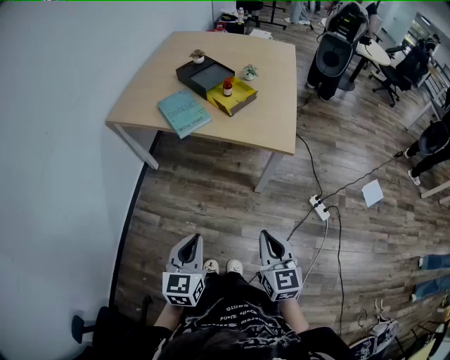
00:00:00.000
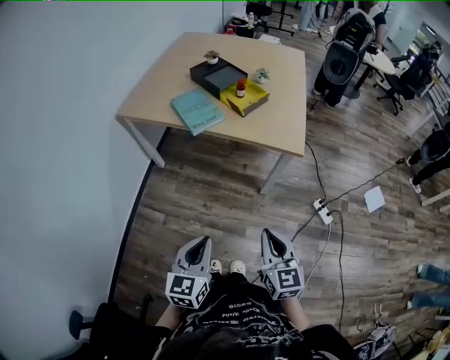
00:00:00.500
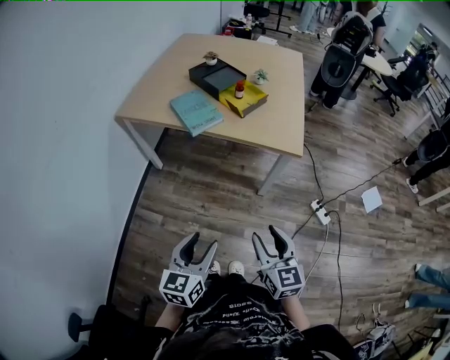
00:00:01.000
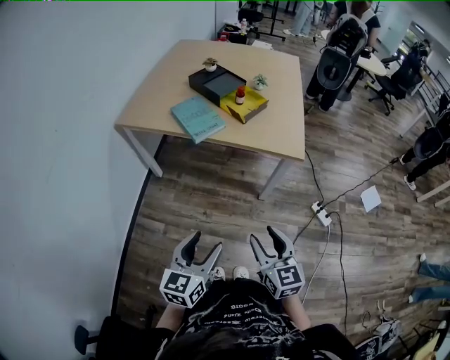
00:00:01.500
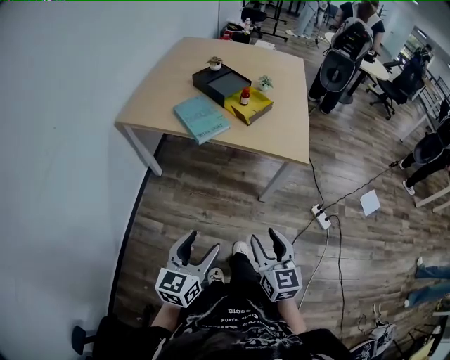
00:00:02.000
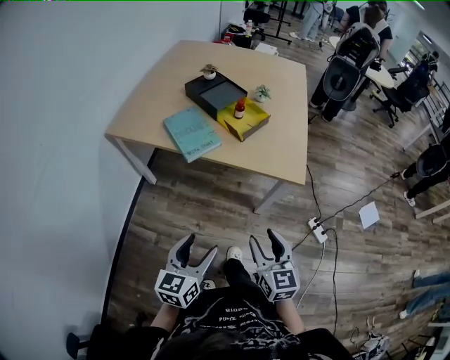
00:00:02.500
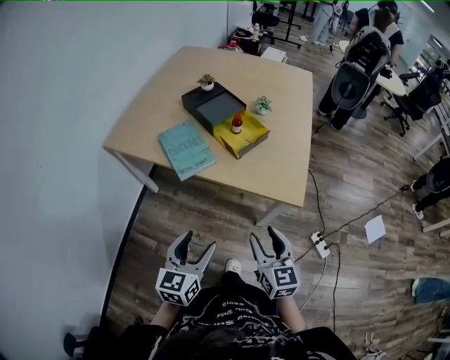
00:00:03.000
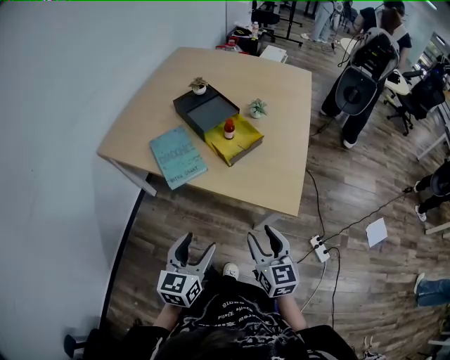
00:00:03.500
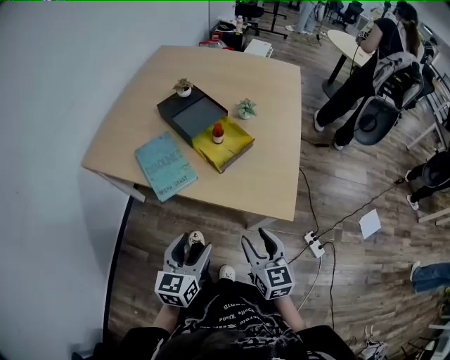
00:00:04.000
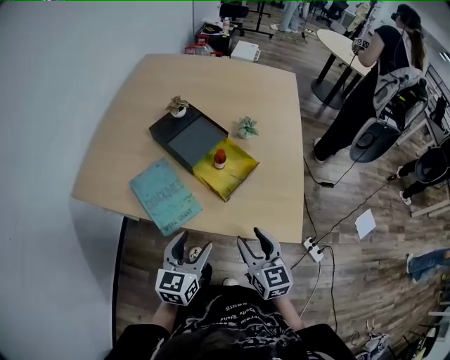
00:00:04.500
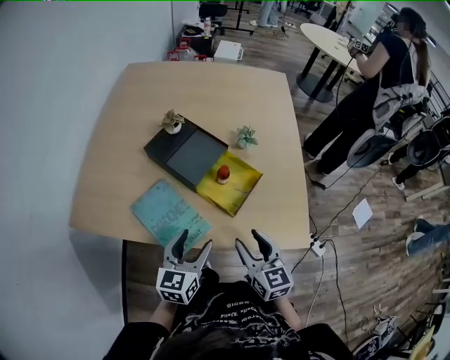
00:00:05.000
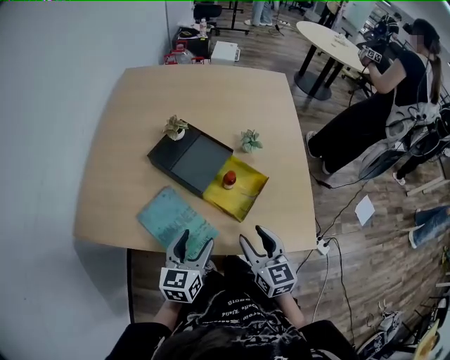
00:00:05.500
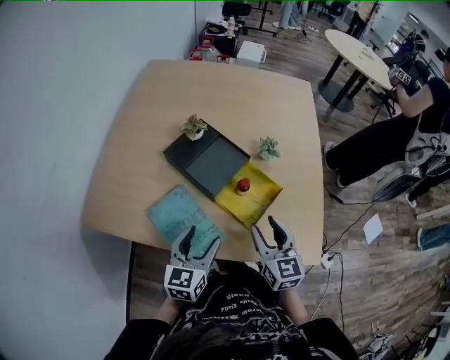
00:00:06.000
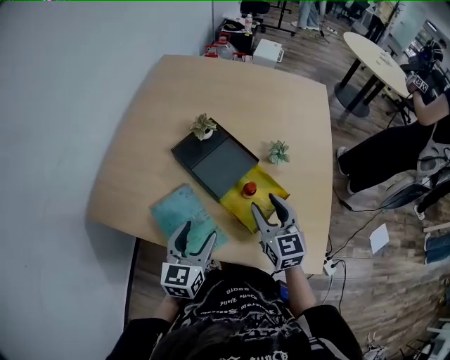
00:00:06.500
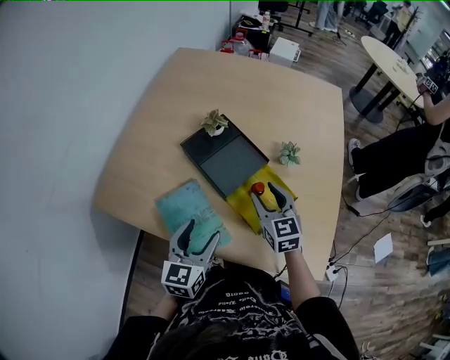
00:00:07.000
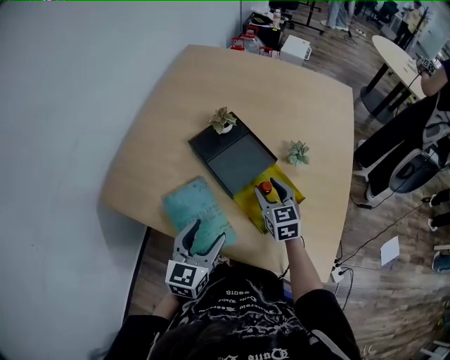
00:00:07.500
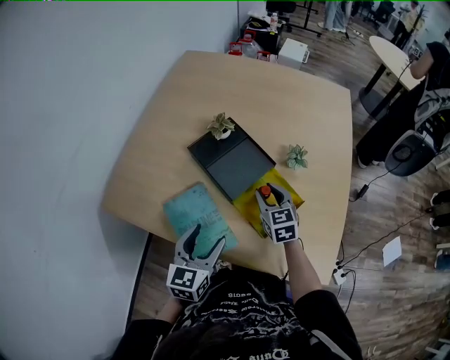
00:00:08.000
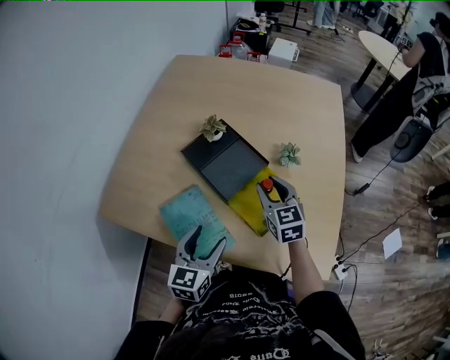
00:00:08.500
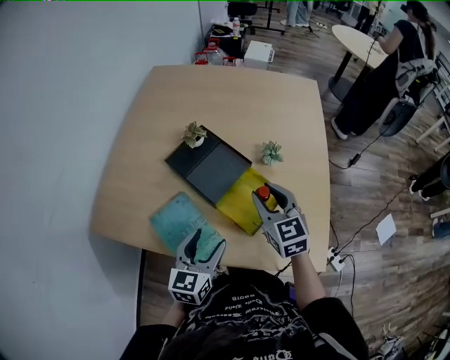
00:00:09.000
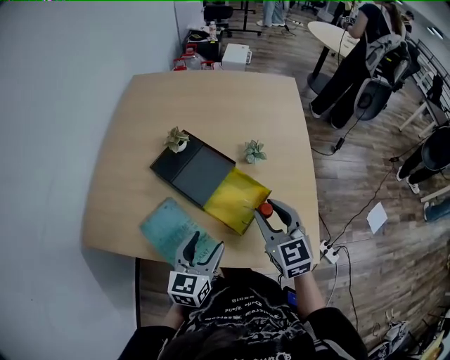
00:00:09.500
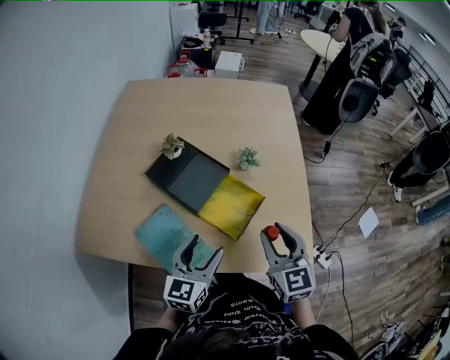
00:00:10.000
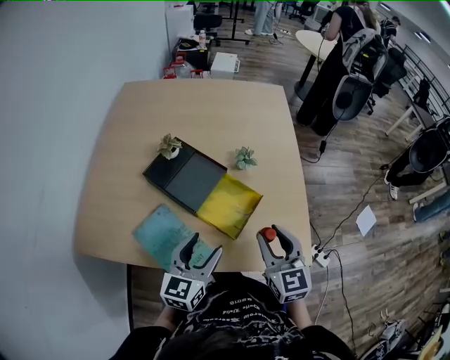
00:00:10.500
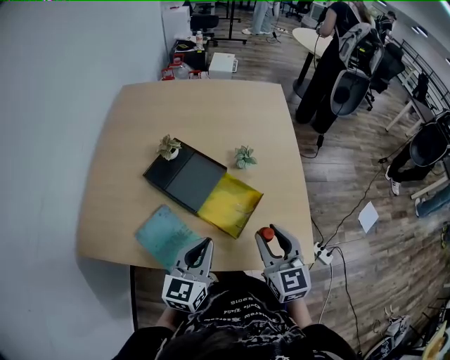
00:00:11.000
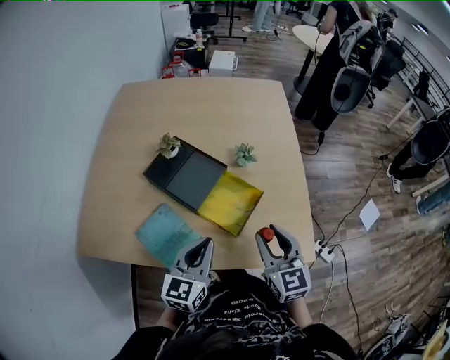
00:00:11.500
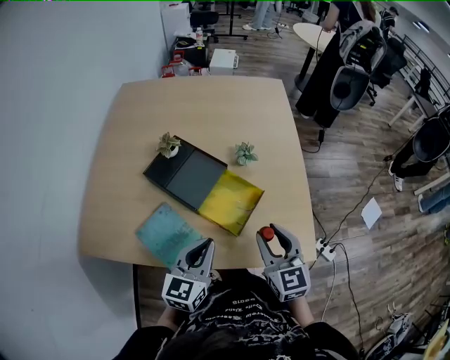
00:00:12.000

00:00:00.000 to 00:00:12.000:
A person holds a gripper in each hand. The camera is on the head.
00:00:00.000 to 00:00:02.000: The grippers both shift to the left by about 10 cm. The right gripper opens up. Meanwhile the left gripper opens up.
00:00:02.000 to 00:00:04.000: The grippers both shift forward by roughly 30 cm.
00:00:04.000 to 00:00:06.000: Both grippers travel together forward and to the left, about 30 cm.
00:00:06.000 to 00:00:08.000: The right gripper goes approximately 15 cm forward and downward.
00:00:08.000 to 00:00:10.000: The right gripper shifts approximately 25 cm backward, upward and to the right, and changes its angle by approximately 20 degrees; the left gripper moves to the right, about 5 cm.
00:00:10.000 to 00:00:12.000: The left gripper closes.

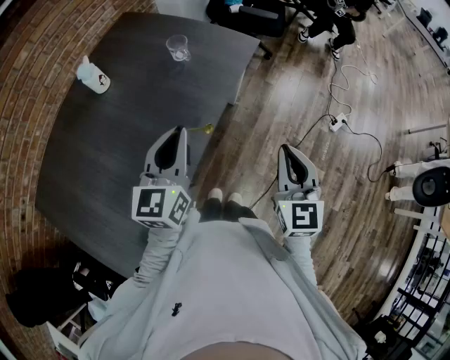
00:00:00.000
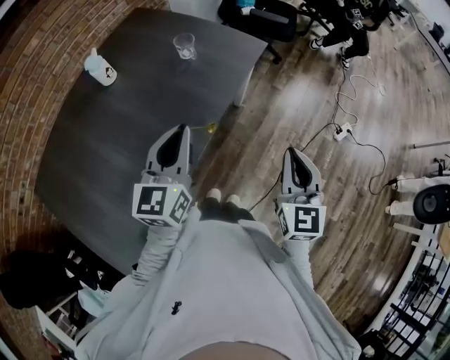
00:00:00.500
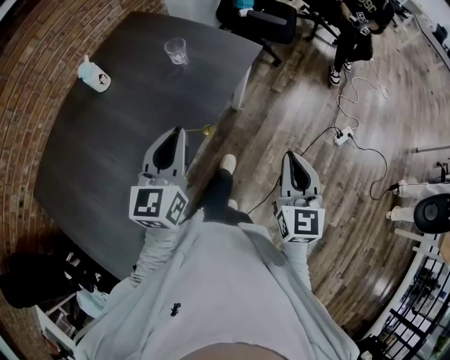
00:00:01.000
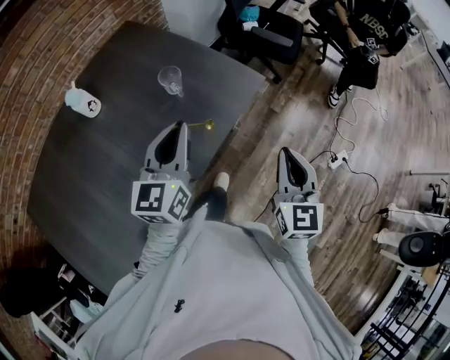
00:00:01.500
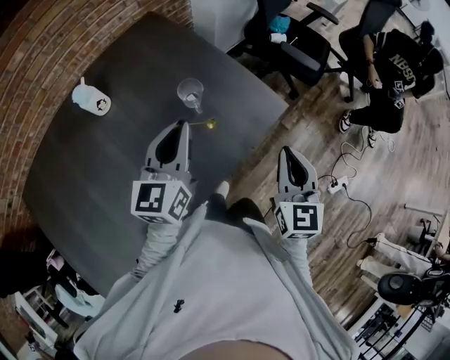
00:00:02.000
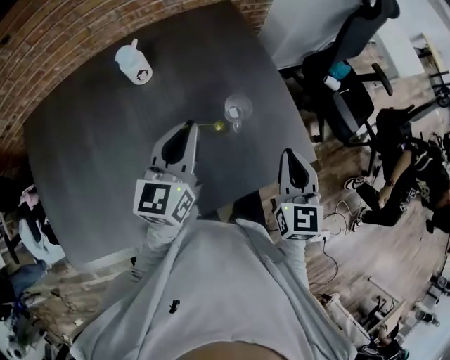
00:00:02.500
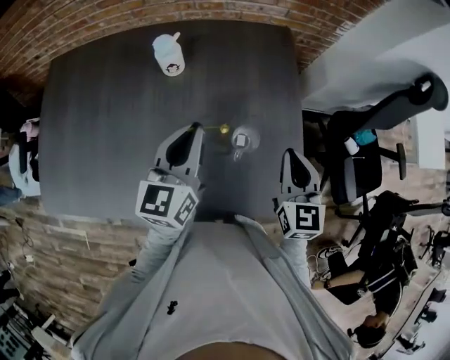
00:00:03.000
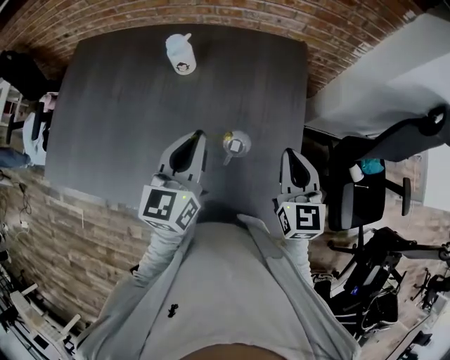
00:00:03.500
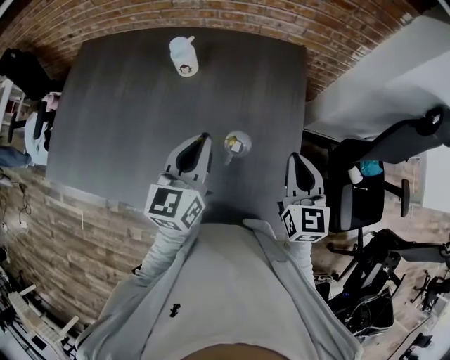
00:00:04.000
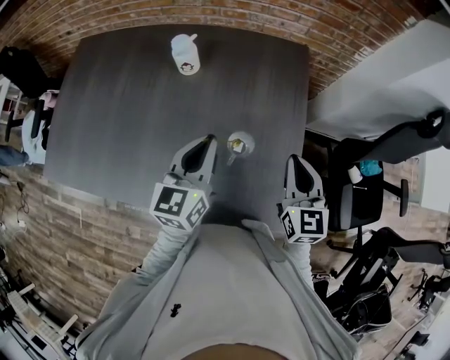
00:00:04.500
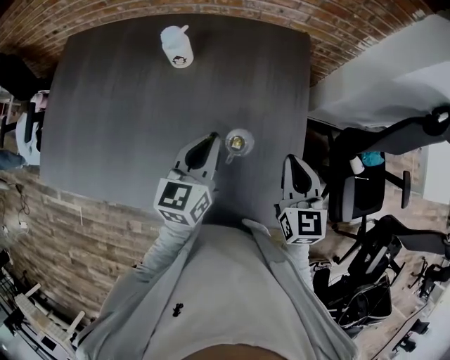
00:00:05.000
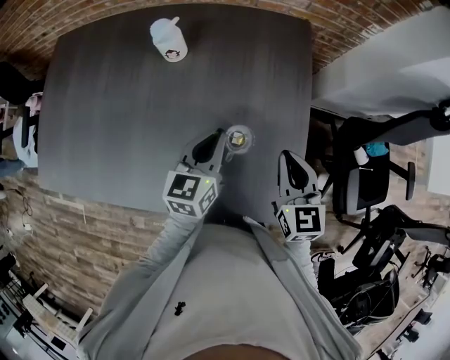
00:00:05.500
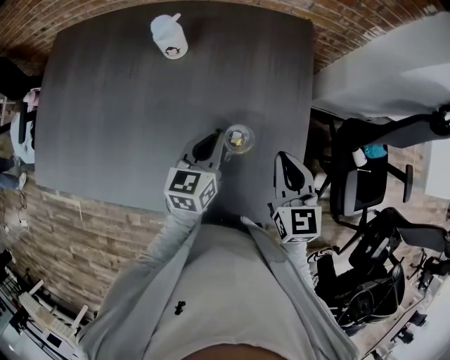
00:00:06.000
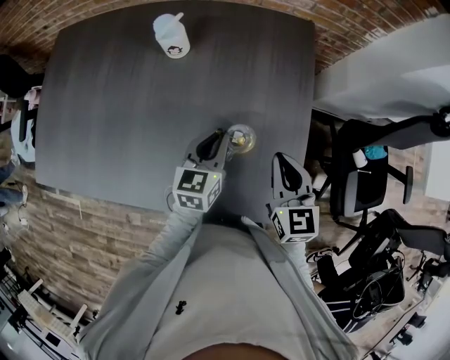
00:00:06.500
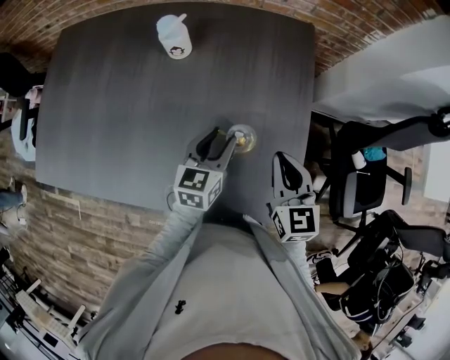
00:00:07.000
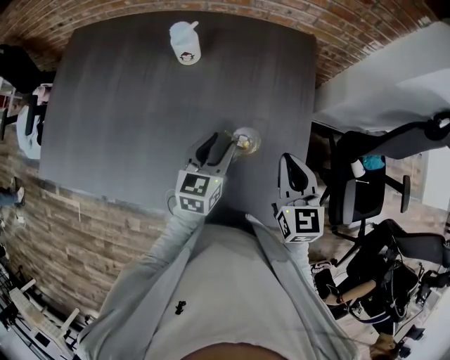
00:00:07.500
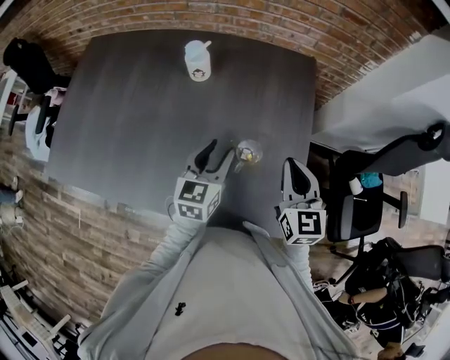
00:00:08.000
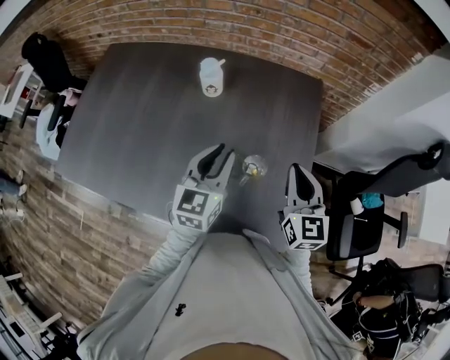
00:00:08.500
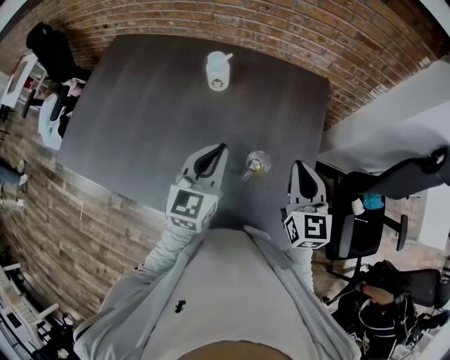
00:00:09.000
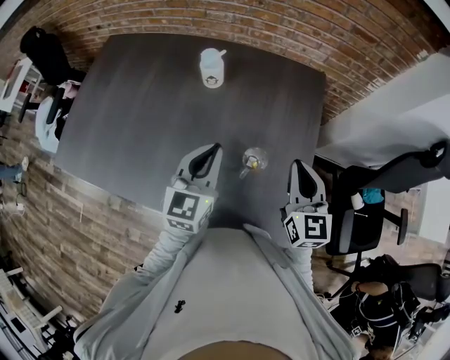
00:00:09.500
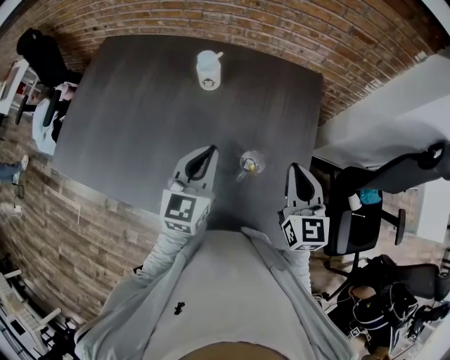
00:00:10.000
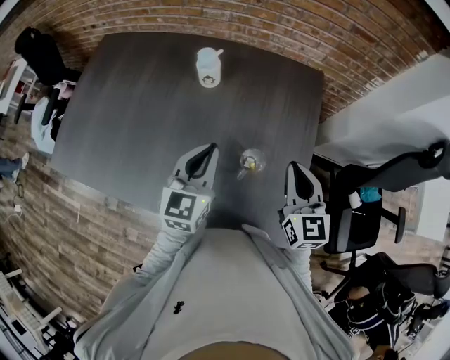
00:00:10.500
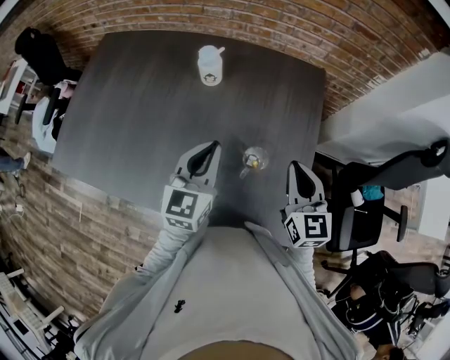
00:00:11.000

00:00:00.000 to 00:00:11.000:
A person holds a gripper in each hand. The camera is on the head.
00:00:00.000 to 00:00:02.000: The grippers both shift forward by about 30 cm.
00:00:02.000 to 00:00:03.500: The right gripper moves some 35 cm, and turns by about 60 degrees; the left gripper moves roughly 10 cm, and changes its angle by about 50 degrees.
00:00:03.500 to 00:00:05.500: The right gripper shifts by approximately 5 cm. The left gripper heads downward, covering approximately 10 cm.
00:00:05.500 to 00:00:07.500: The left gripper opens up.
00:00:07.500 to 00:00:09.000: The right gripper travels upward by roughly 5 cm; the left gripper travels upward and to the left by some 15 cm, and closes its fingers.
00:00:09.000 to 00:00:11.000: There are only small adjustments of the grippers.

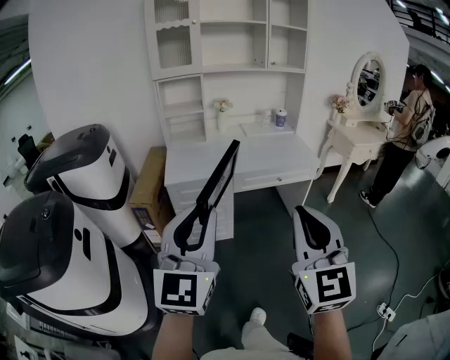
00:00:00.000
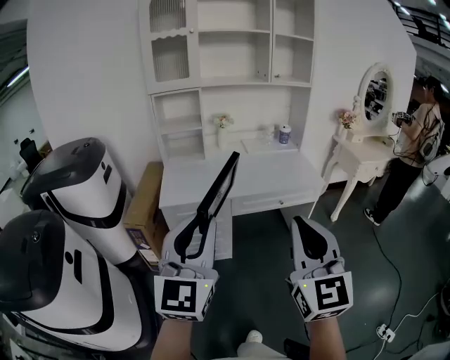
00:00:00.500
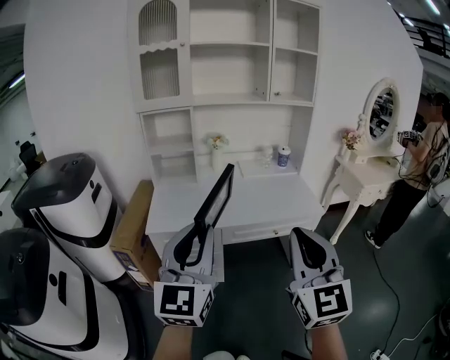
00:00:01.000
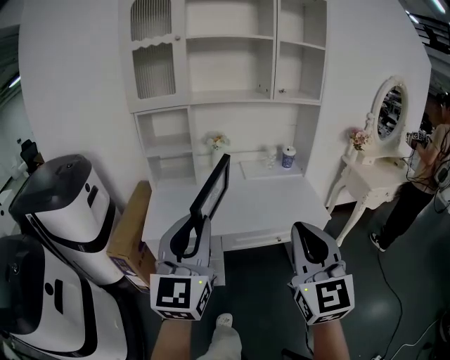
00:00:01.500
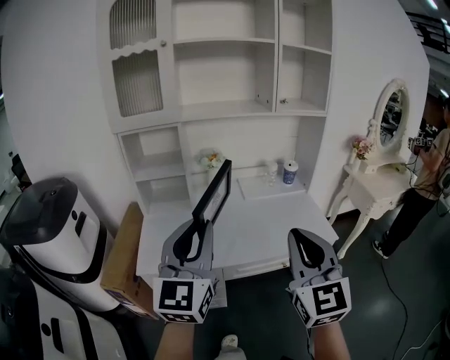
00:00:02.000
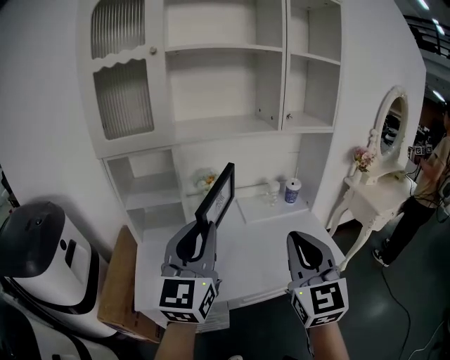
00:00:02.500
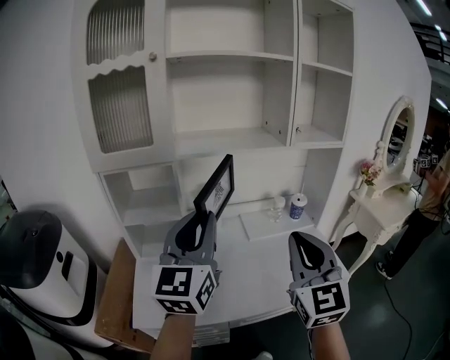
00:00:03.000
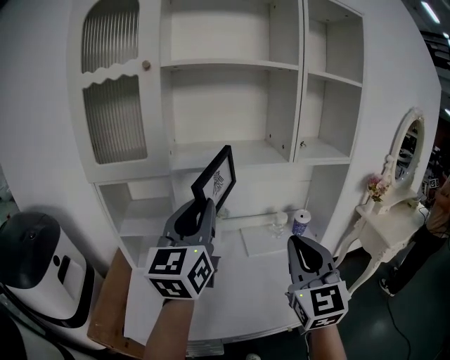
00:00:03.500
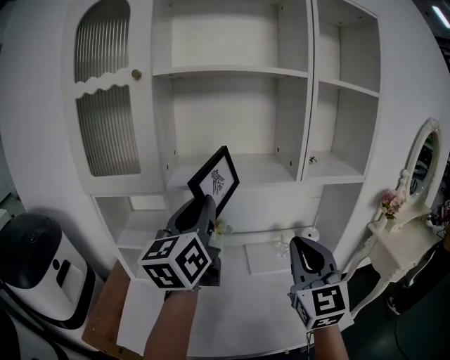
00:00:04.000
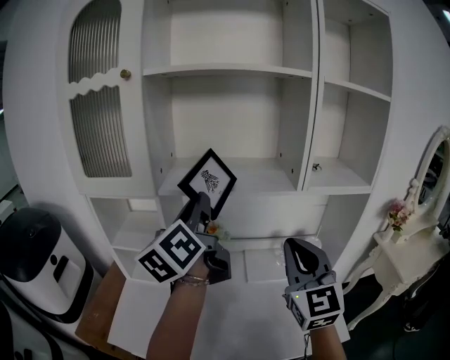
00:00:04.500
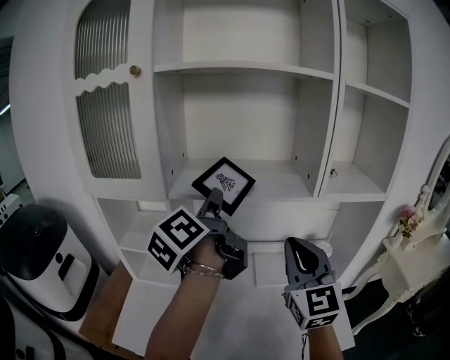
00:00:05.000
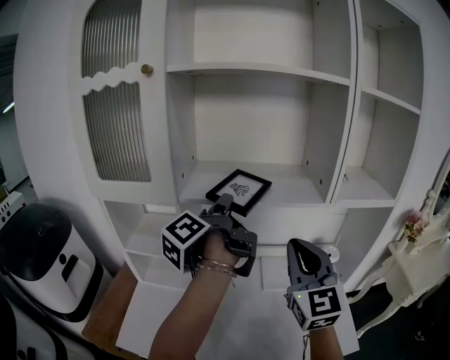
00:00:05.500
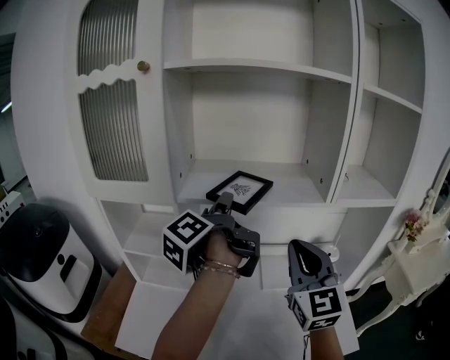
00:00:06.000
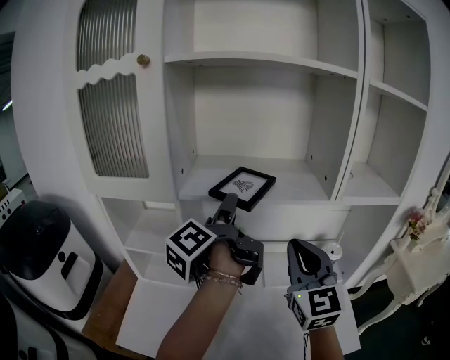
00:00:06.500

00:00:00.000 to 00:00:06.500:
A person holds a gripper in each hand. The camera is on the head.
00:00:00.000 to 00:00:02.000: The pair of grippers is taken forward, approximately 40 cm.
00:00:02.000 to 00:00:04.500: The two grippers go about 40 cm forward. The left gripper twists approximately 40 degrees counterclockwise, seen from behind.
00:00:04.500 to 00:00:06.500: The left gripper is displaced forward and downward by about 10 cm, rotates around the line of its fingers by approximately 40 degrees, counterclockwise from behind, and opens up. Meanwhile the right gripper is displaced forward by roughly 5 cm.
